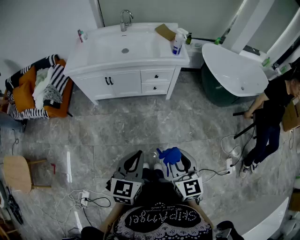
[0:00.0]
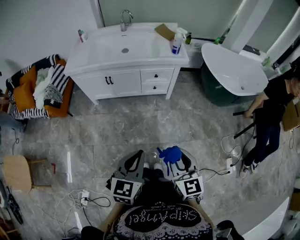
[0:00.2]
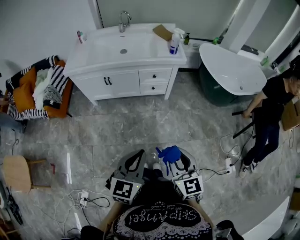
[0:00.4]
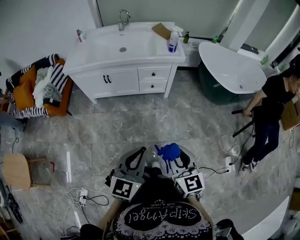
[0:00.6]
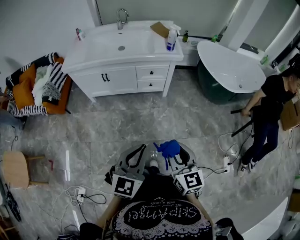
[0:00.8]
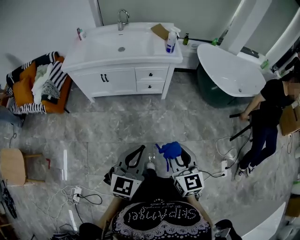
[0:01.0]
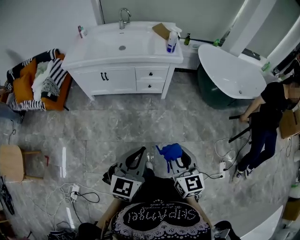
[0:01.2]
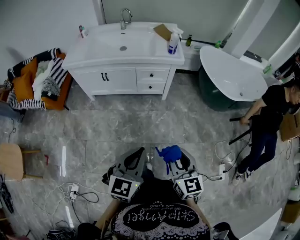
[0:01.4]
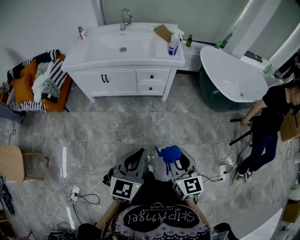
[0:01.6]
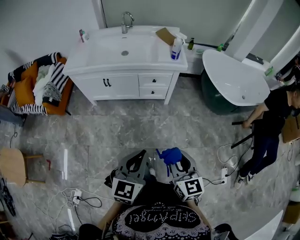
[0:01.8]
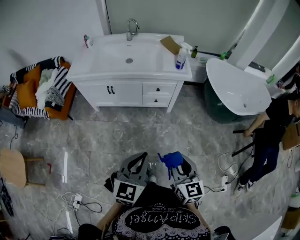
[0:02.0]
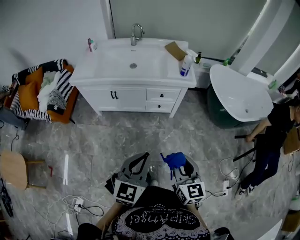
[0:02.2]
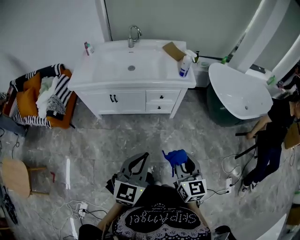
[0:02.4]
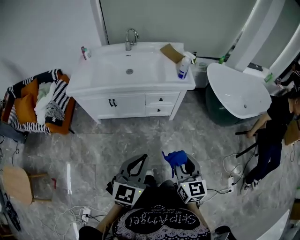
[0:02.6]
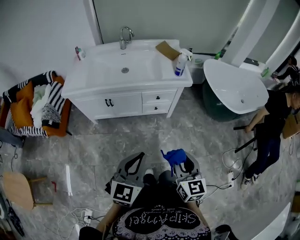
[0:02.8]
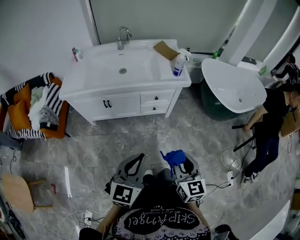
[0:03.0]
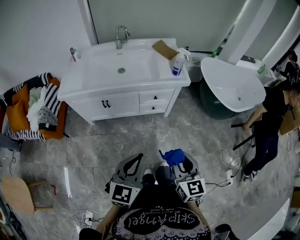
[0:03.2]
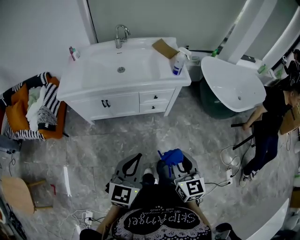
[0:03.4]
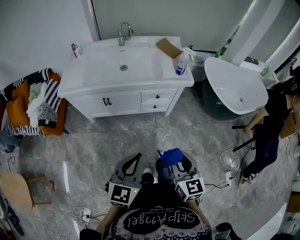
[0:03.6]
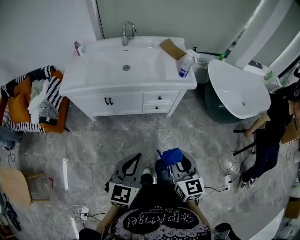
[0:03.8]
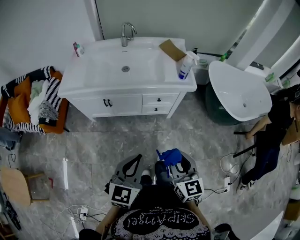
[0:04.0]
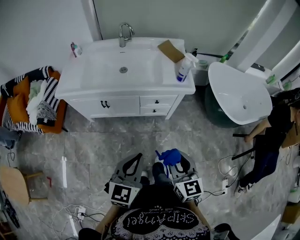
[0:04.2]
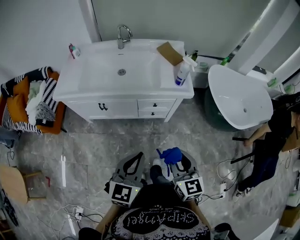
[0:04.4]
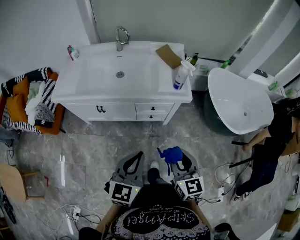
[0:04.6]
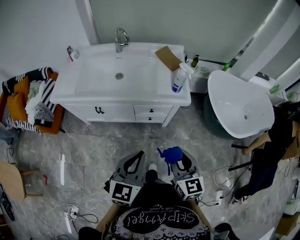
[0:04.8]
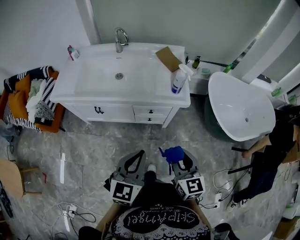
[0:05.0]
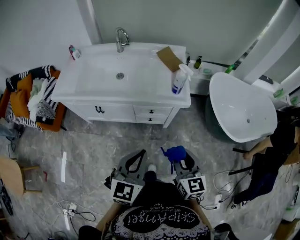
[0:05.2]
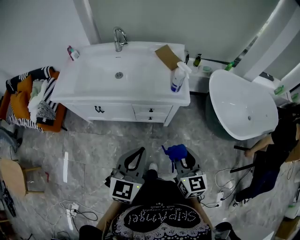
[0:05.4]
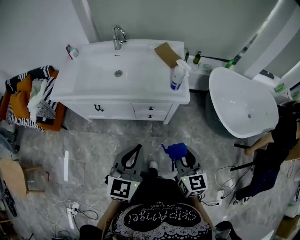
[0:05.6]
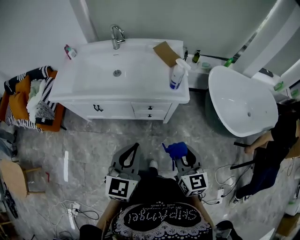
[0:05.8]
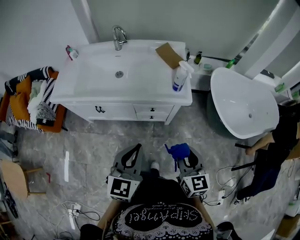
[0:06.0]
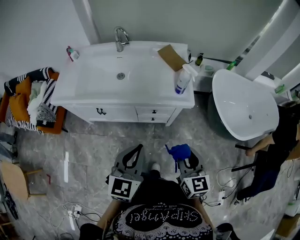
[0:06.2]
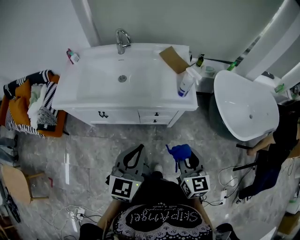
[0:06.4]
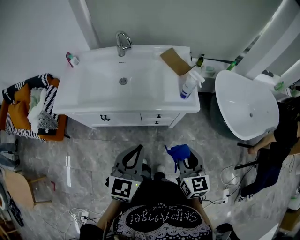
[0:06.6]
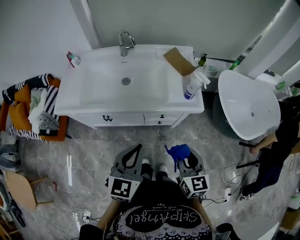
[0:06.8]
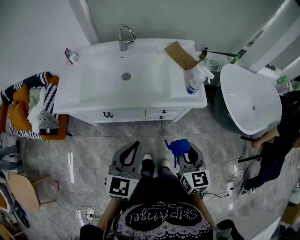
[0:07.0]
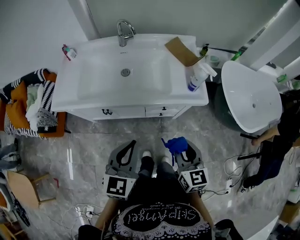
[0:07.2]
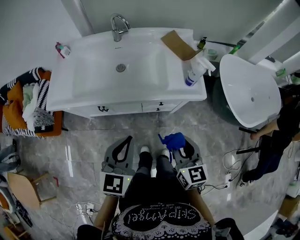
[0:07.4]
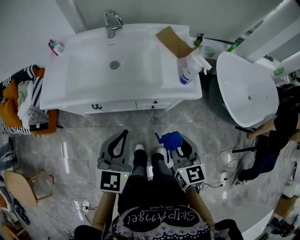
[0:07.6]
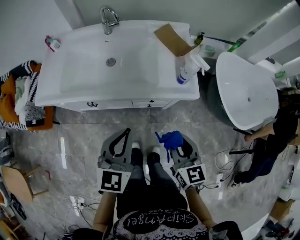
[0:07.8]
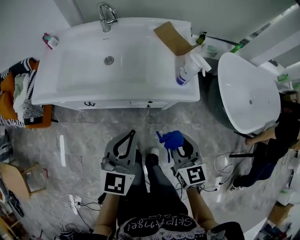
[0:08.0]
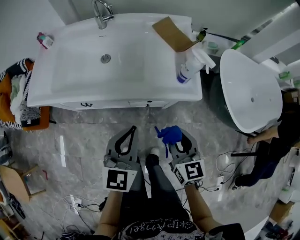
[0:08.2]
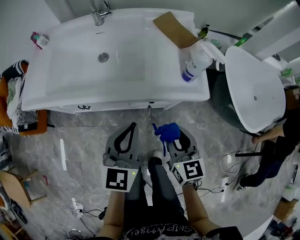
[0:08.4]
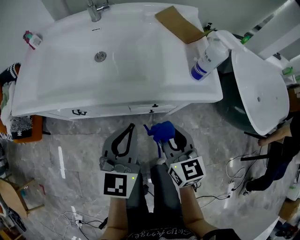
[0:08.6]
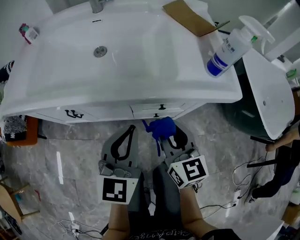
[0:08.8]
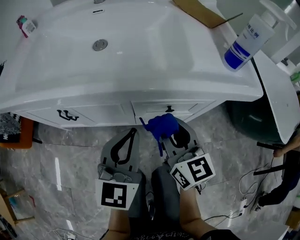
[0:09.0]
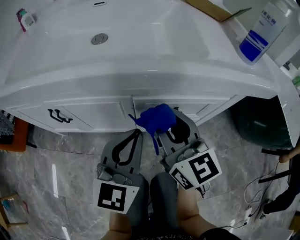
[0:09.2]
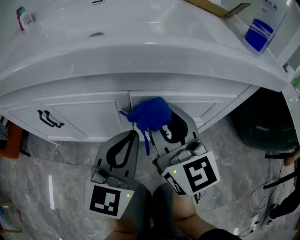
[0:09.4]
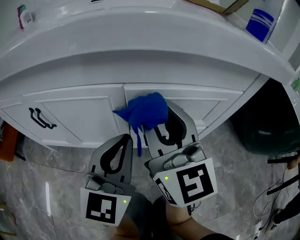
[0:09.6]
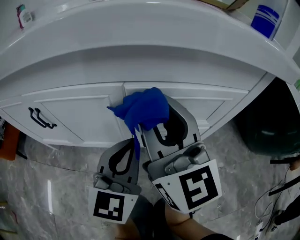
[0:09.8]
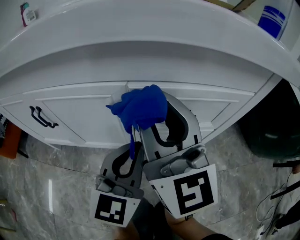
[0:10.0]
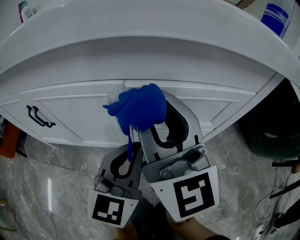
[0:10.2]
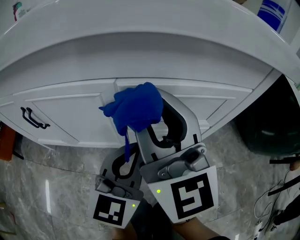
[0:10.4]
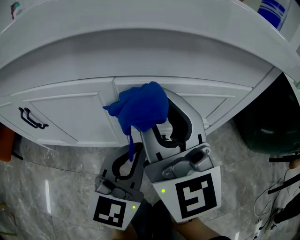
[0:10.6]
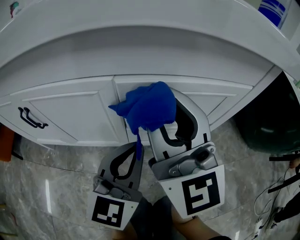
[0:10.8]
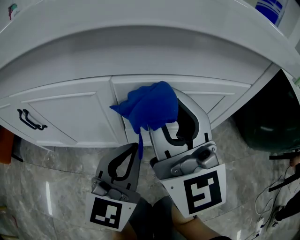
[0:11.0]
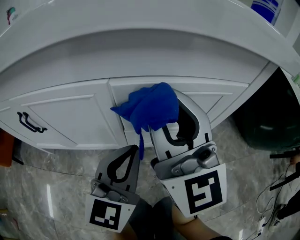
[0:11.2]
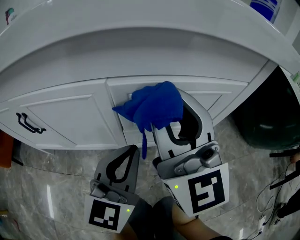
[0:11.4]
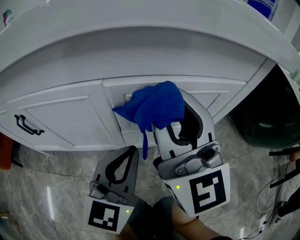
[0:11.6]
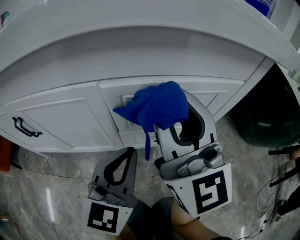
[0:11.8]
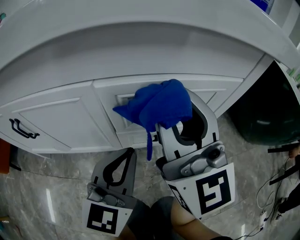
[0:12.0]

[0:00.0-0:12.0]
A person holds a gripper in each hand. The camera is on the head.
0:00.0 to 0:01.6: The two grippers go about 10 cm to the right.
0:01.6 to 0:03.0: The grippers both shift forward and to the left by approximately 15 cm.
0:03.0 to 0:04.4: The grippers both shift forward by about 10 cm.
0:04.4 to 0:06.0: The left gripper heads forward and to the right, covering approximately 10 cm, while the right gripper shifts roughly 10 cm to the right and forward.
0:06.0 to 0:07.6: The right gripper shifts about 15 cm to the left and forward, while the left gripper shifts approximately 15 cm forward and to the left.
0:07.6 to 0:09.0: The left gripper heads downward, covering about 35 cm; the right gripper goes about 35 cm downward and forward.
0:09.0 to 0:10.4: The right gripper moves to the left, about 5 cm, and rotates about 30 degrees, while the left gripper heads downward, covering approximately 20 cm.
0:10.4 to 0:12.0: The right gripper goes approximately 5 cm to the right.

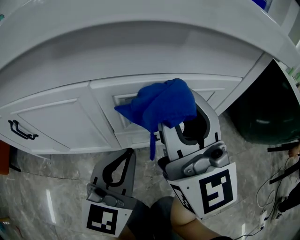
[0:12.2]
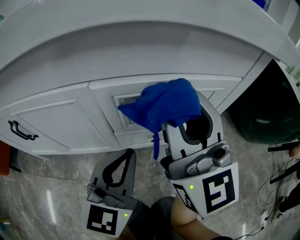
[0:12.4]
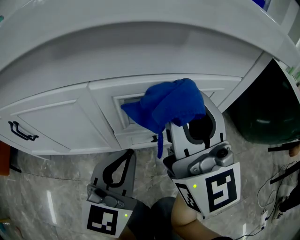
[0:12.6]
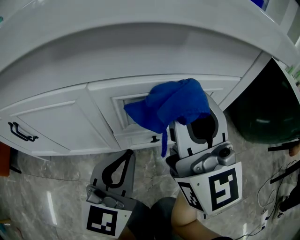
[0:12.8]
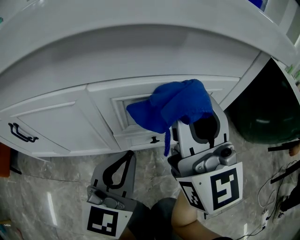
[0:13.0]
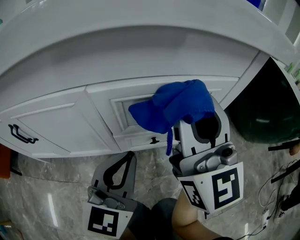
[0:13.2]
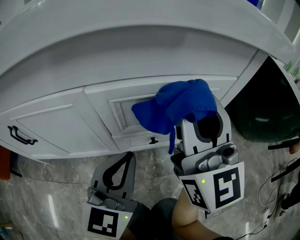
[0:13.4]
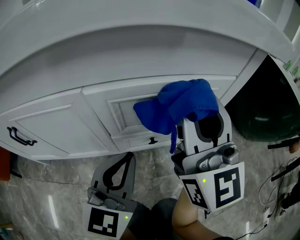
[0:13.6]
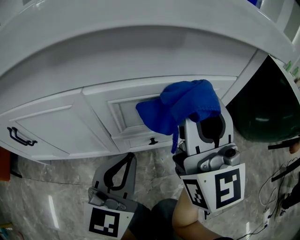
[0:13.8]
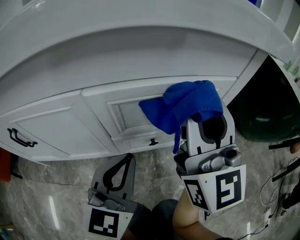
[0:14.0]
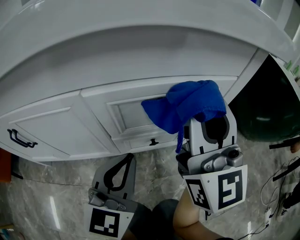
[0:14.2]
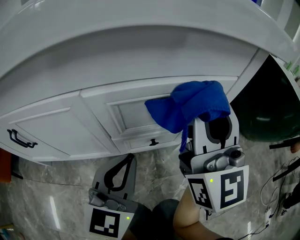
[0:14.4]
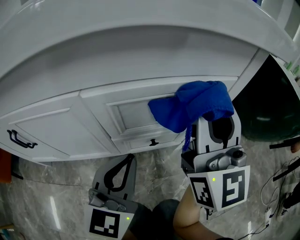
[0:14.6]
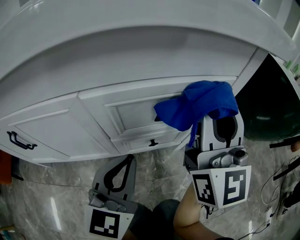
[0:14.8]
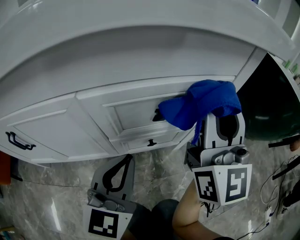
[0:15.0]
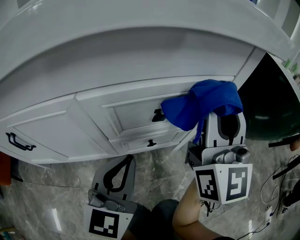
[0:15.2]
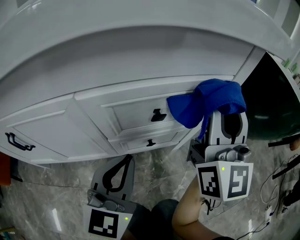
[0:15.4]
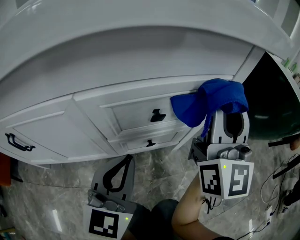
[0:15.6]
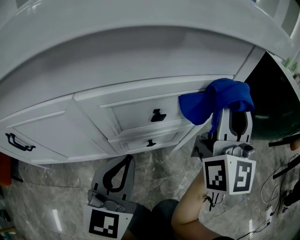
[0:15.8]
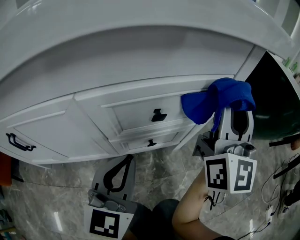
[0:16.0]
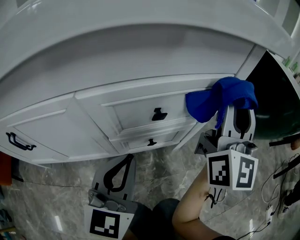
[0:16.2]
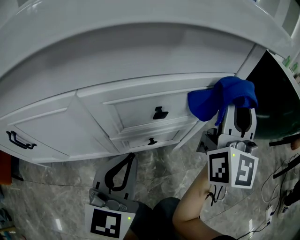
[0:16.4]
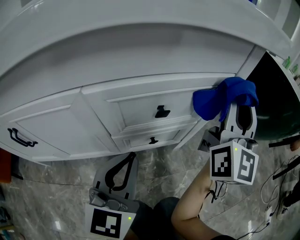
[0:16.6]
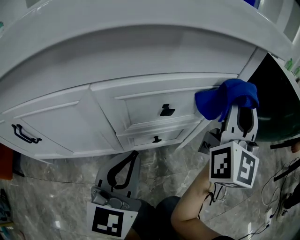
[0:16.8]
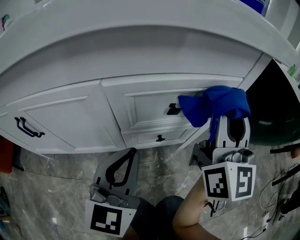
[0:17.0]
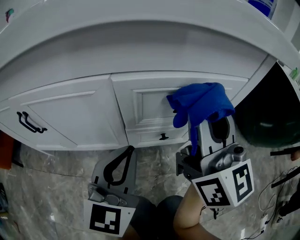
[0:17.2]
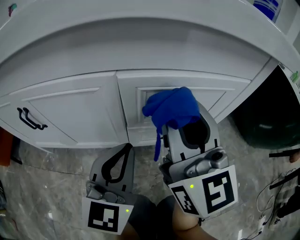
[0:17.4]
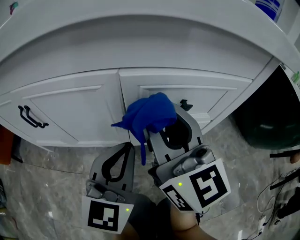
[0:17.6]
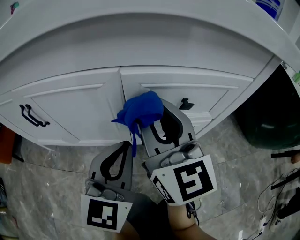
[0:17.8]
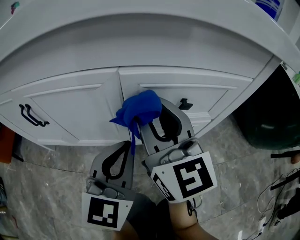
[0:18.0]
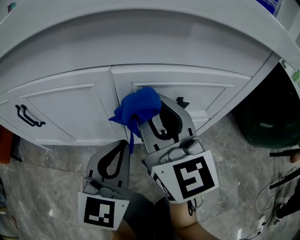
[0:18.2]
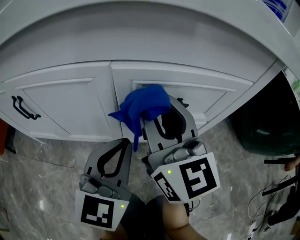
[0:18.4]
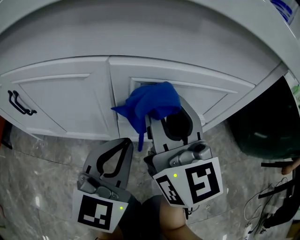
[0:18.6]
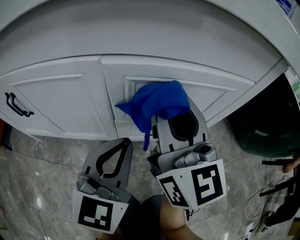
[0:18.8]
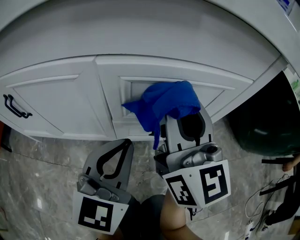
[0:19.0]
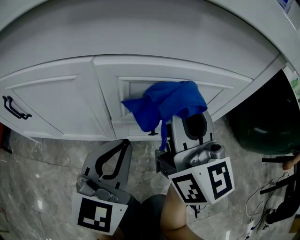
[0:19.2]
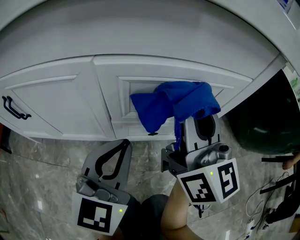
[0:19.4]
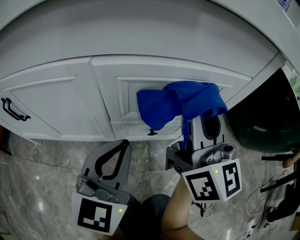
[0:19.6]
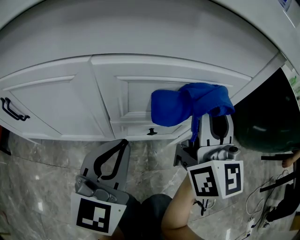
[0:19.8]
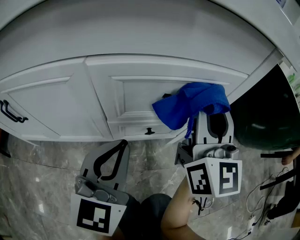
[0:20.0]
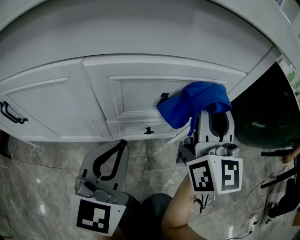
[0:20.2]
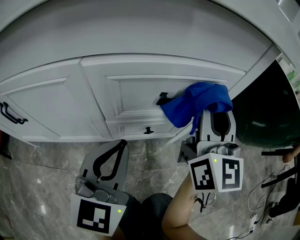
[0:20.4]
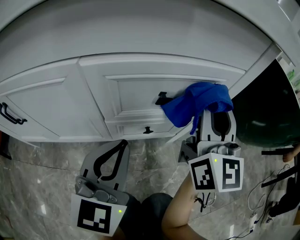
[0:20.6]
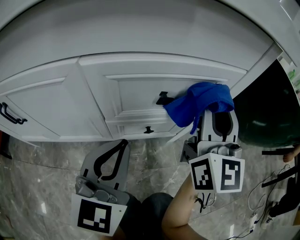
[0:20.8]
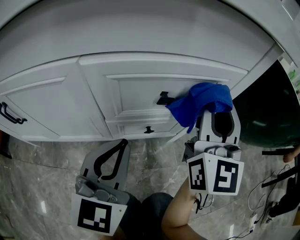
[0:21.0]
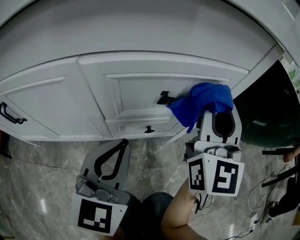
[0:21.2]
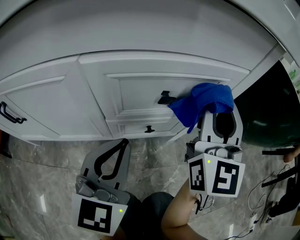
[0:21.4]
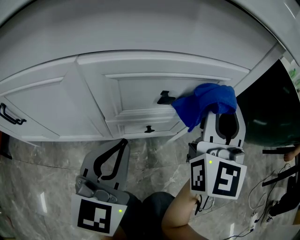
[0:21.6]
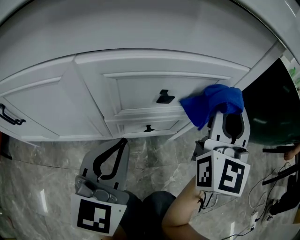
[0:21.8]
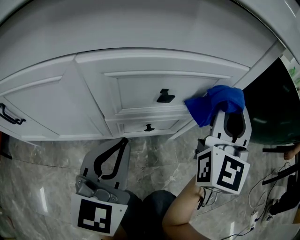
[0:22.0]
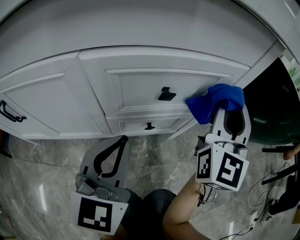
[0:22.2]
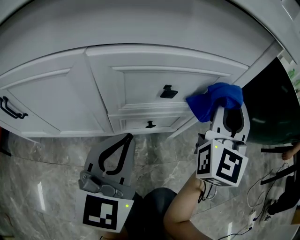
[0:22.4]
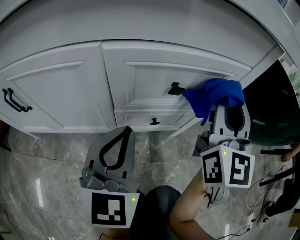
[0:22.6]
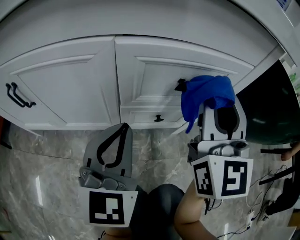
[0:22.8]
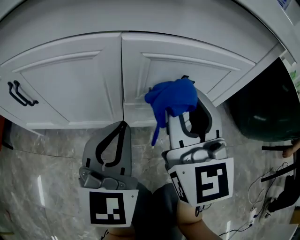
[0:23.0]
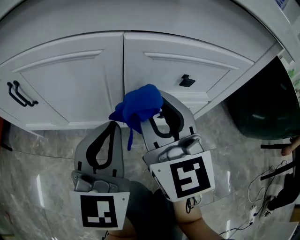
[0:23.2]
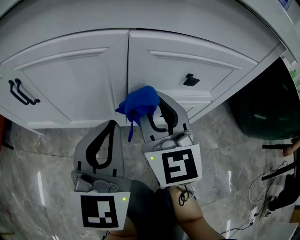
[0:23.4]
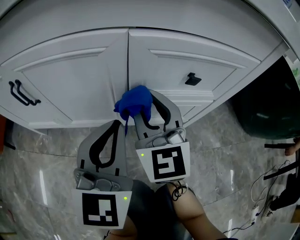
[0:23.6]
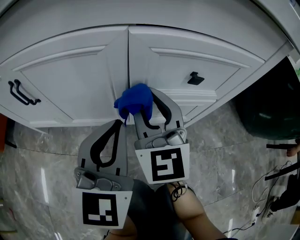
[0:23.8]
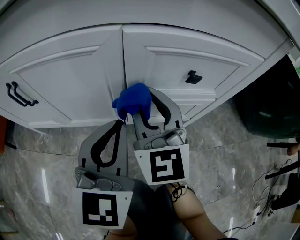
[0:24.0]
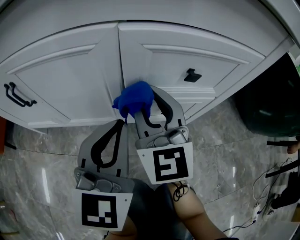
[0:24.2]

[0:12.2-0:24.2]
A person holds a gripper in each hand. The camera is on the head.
0:12.2 to 0:13.8: The right gripper travels to the right by roughly 5 cm.
0:13.8 to 0:15.2: The right gripper travels to the right by about 5 cm.
0:15.2 to 0:16.6: The right gripper goes roughly 5 cm to the right.
0:16.6 to 0:18.2: The right gripper ends up roughly 25 cm from where it was, and changes its angle by approximately 50 degrees, while the left gripper changes place by roughly 5 cm.
0:18.2 to 0:19.8: The right gripper goes about 15 cm to the right, and changes its angle by approximately 20 degrees.
0:19.8 to 0:21.2: There are only small adjustments of the grippers.
0:21.2 to 0:22.6: The grippers move only a little.
0:22.6 to 0:24.2: The right gripper moves to the left and downward, approximately 20 cm, and swivels about 30 degrees.
